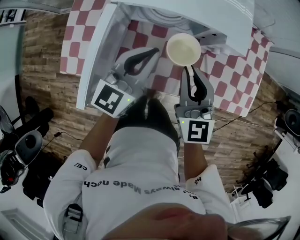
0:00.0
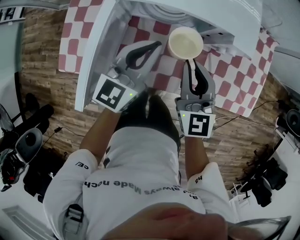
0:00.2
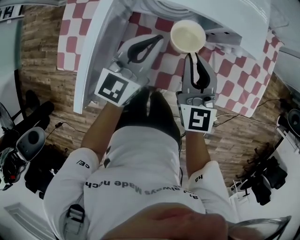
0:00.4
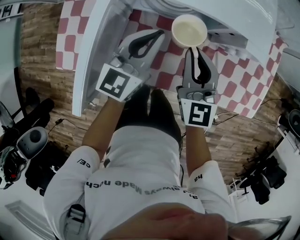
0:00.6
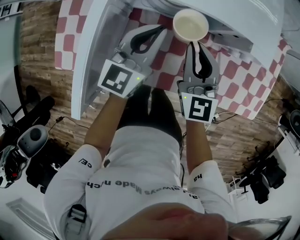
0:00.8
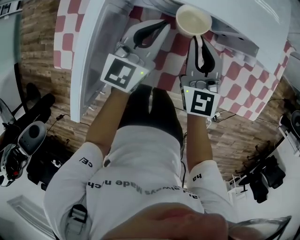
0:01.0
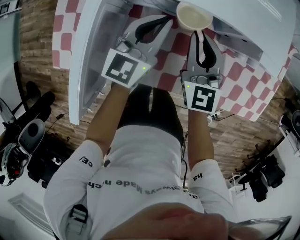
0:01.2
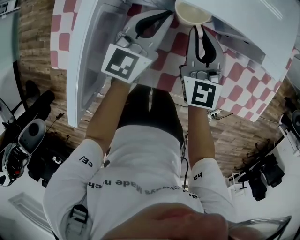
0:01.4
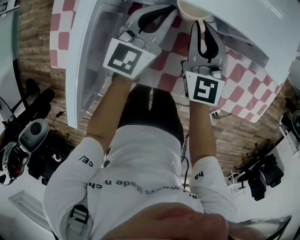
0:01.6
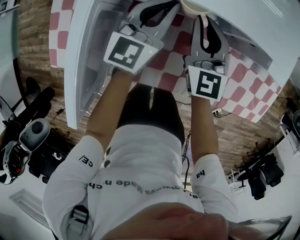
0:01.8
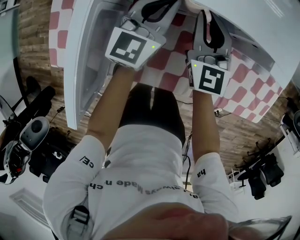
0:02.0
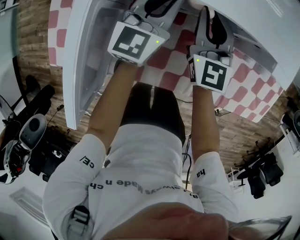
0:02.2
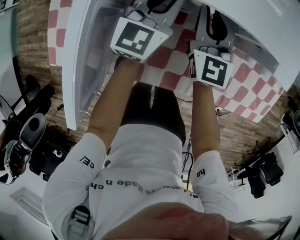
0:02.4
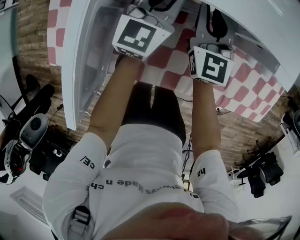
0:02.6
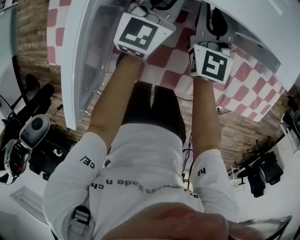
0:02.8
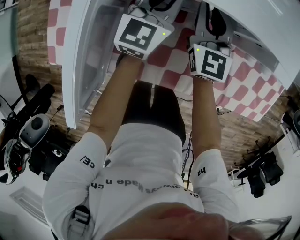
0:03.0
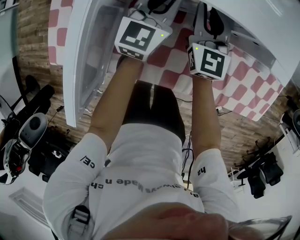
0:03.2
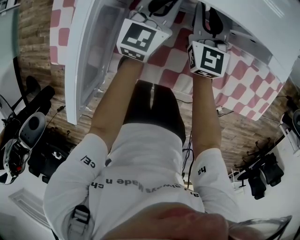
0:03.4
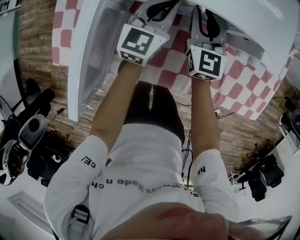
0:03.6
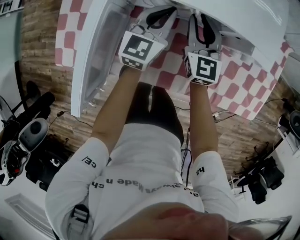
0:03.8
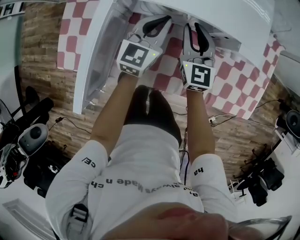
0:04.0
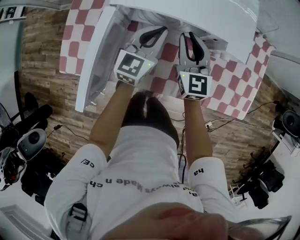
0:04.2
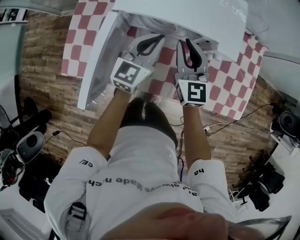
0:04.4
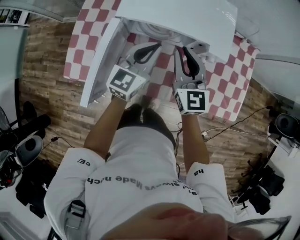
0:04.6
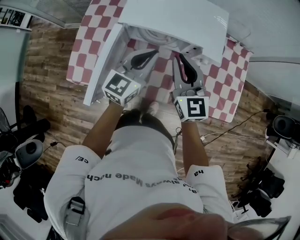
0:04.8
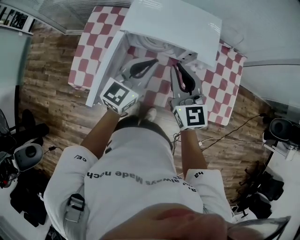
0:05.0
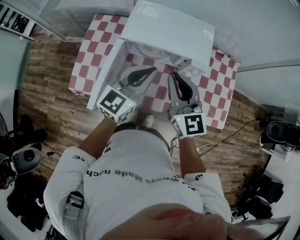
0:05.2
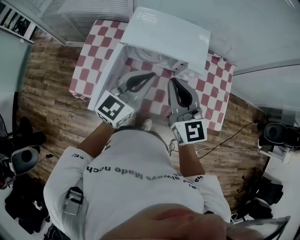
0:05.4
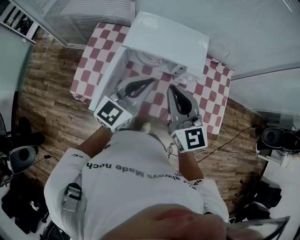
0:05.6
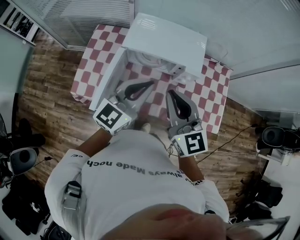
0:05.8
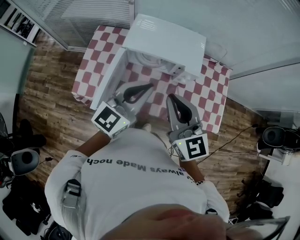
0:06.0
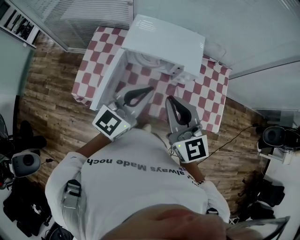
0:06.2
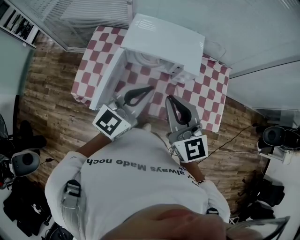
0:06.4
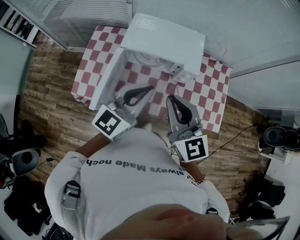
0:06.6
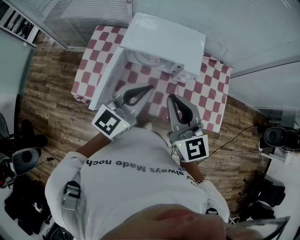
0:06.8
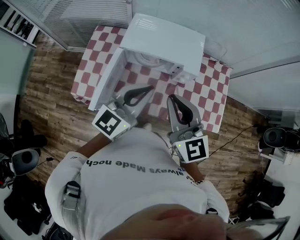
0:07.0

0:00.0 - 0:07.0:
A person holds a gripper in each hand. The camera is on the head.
0:00.0 - 0:01.4: Both grippers travel together downward and forward, approximately 20 cm.
0:01.4 - 0:02.8: Both grippers move forward, about 5 cm.
0:02.8 - 0:04.2: The two grippers go some 15 cm upward and backward.
0:04.2 - 0:05.6: The two grippers go about 35 cm upward and backward.
0:05.6 - 0:07.0: The right gripper changes place by about 5 cm.

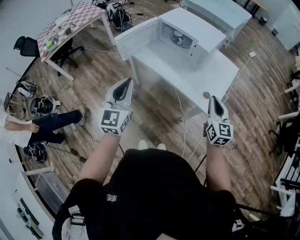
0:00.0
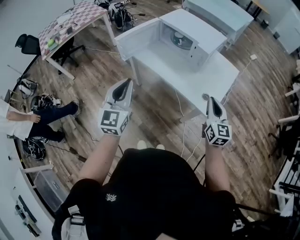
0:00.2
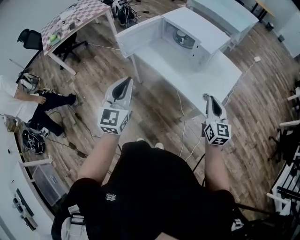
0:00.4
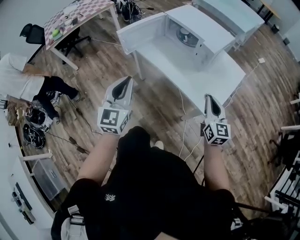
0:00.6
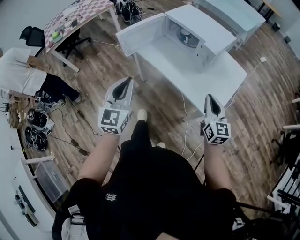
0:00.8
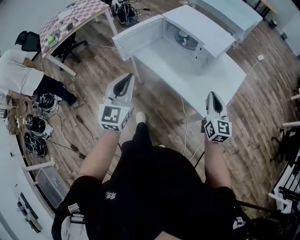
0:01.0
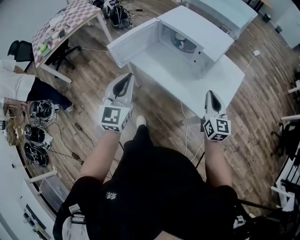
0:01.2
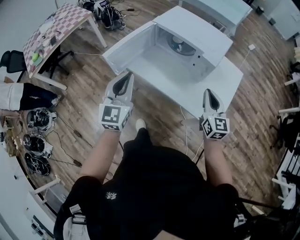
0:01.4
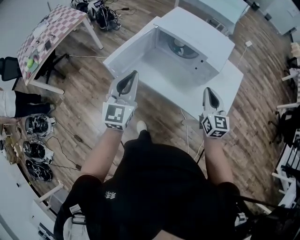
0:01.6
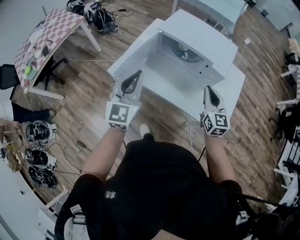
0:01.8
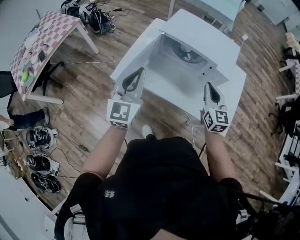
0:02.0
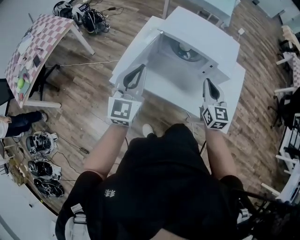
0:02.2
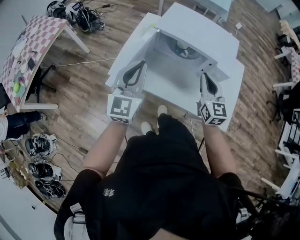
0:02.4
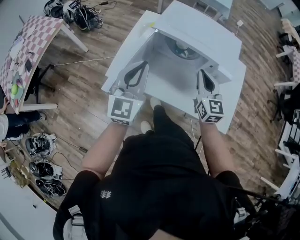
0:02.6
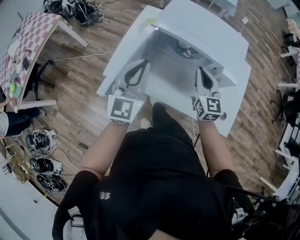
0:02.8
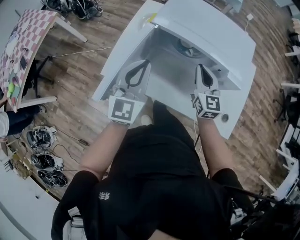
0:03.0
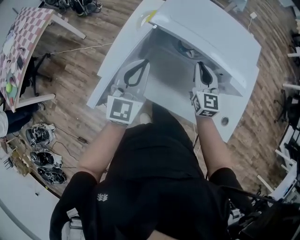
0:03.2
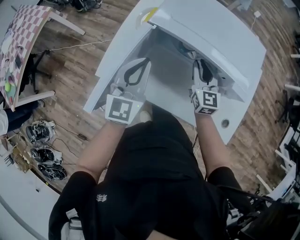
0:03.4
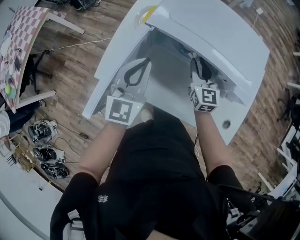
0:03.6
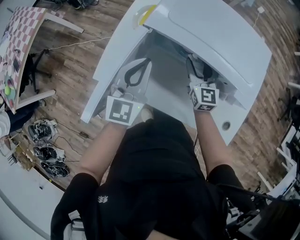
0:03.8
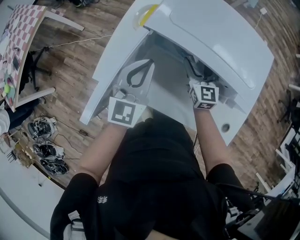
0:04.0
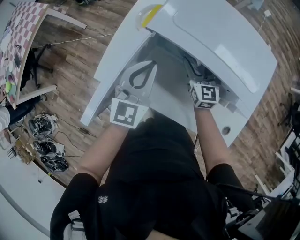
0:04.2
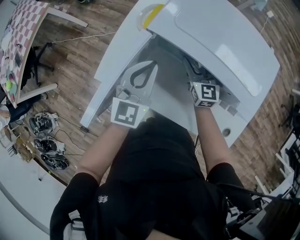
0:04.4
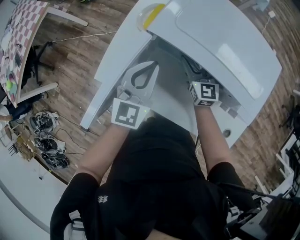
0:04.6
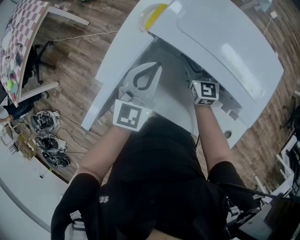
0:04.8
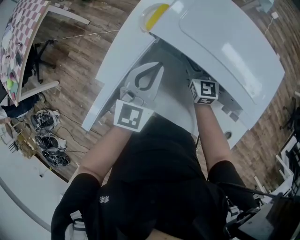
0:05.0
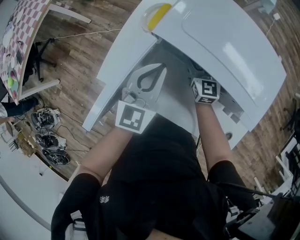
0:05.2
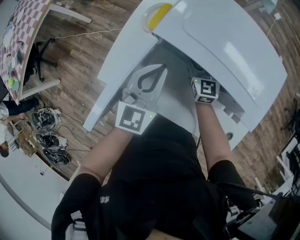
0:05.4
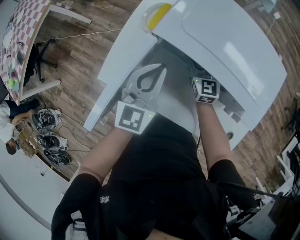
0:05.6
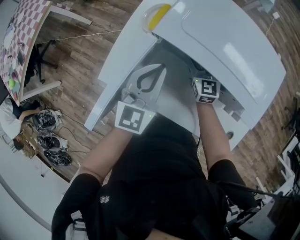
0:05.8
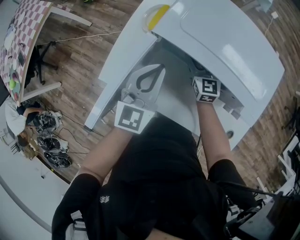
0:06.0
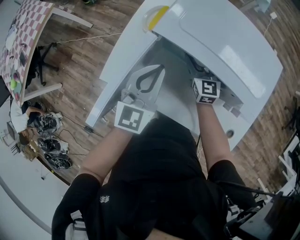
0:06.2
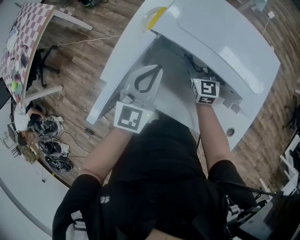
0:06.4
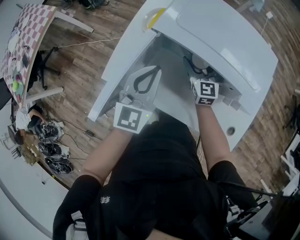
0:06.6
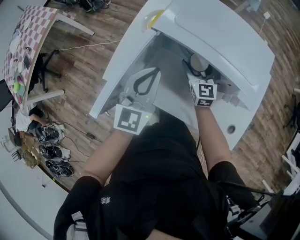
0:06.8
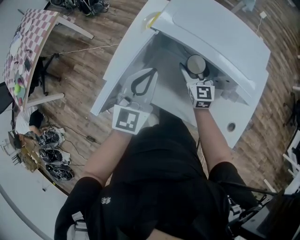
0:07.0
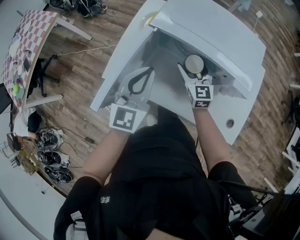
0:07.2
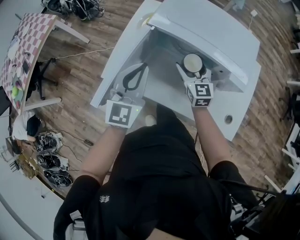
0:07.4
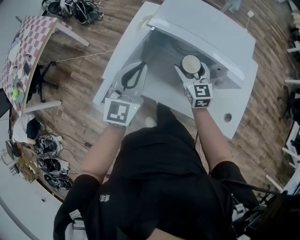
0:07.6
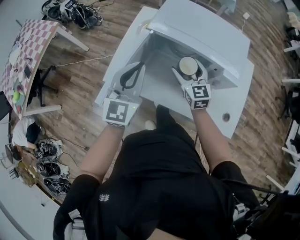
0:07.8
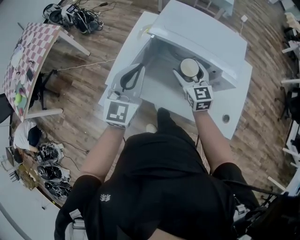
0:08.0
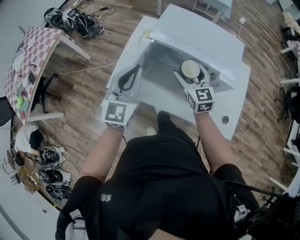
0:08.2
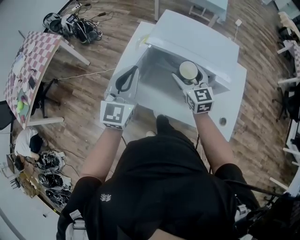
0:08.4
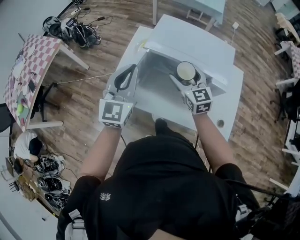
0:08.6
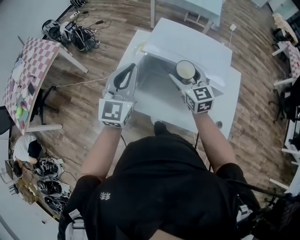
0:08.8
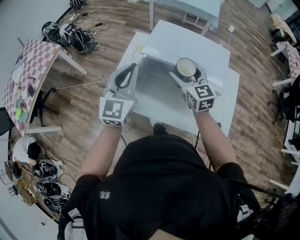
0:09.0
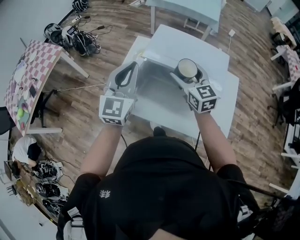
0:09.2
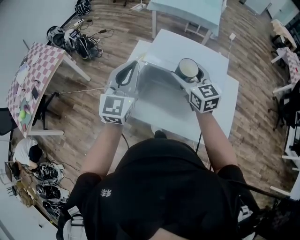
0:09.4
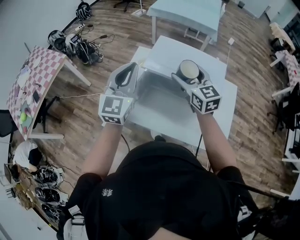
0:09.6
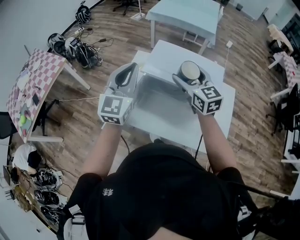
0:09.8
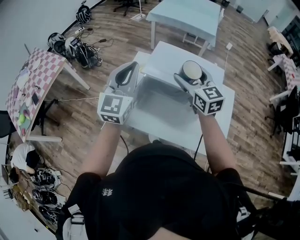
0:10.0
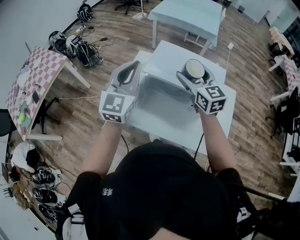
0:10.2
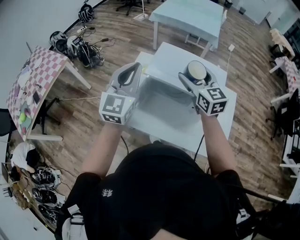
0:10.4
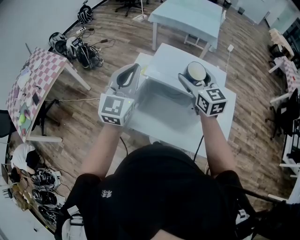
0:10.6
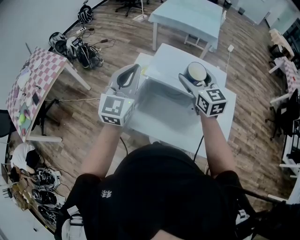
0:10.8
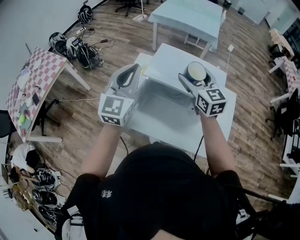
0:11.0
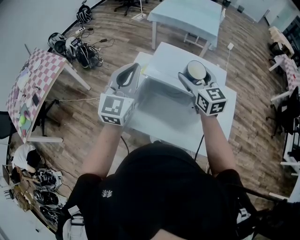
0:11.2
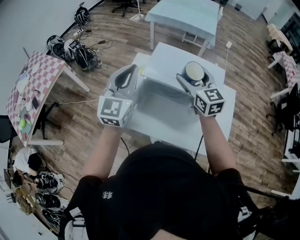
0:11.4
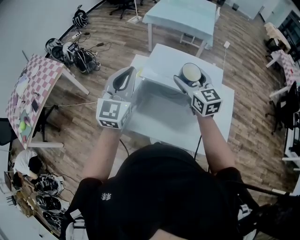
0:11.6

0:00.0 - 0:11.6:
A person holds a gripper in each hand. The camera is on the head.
0:00.0 - 0:01.4: The grippers both shift forward by some 20 cm.
0:01.4 - 0:02.8: The right gripper is displaced forward and to the left by roughly 25 cm. The left gripper moves forward, roughly 25 cm.
0:02.8 - 0:04.4: Both grippers move forward and downward, approximately 20 cm. The right gripper opens its fingers.
0:04.4 - 0:05.8: The grippers stay close to where they were, moving slightly.
0:05.8 - 0:07.2: The two grippers go approximately 10 cm backward and upward.
0:07.2 - 0:08.8: Both grippers move upward, about 15 cm.
0:08.8 - 0:10.2: The two grippers go about 10 cm upward.
0:10.2 - 0:11.6: The grippers make only small movements.

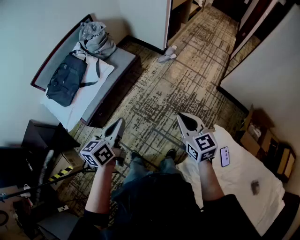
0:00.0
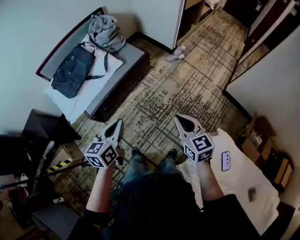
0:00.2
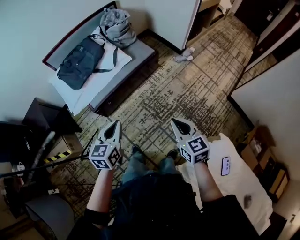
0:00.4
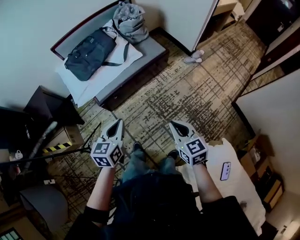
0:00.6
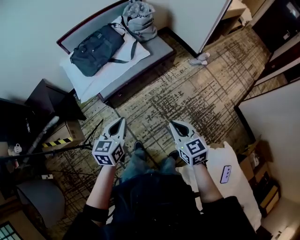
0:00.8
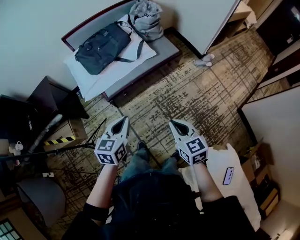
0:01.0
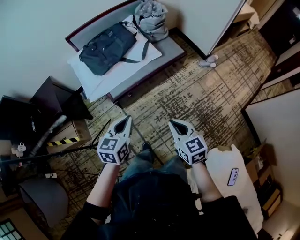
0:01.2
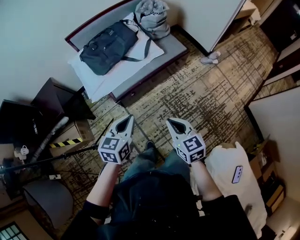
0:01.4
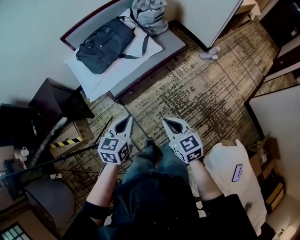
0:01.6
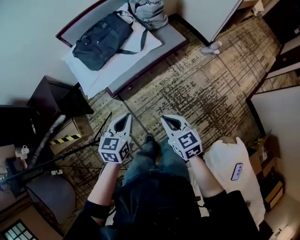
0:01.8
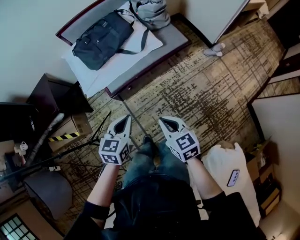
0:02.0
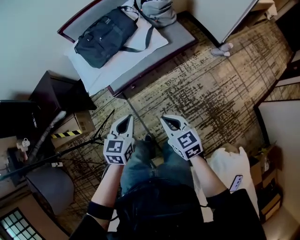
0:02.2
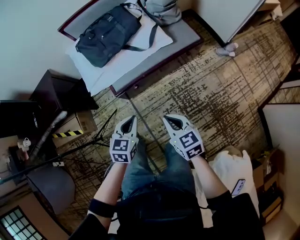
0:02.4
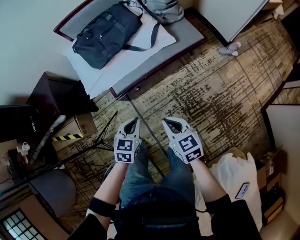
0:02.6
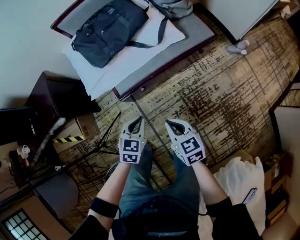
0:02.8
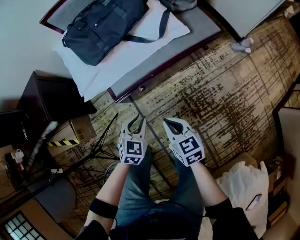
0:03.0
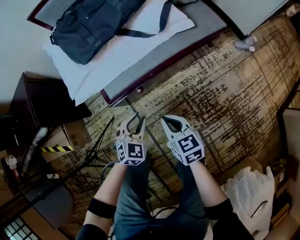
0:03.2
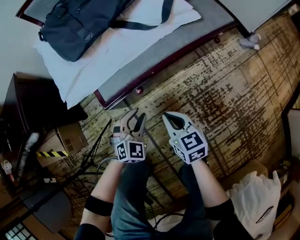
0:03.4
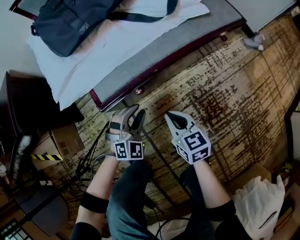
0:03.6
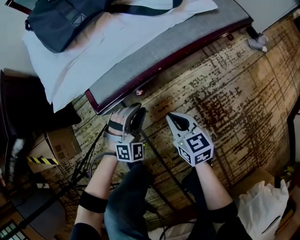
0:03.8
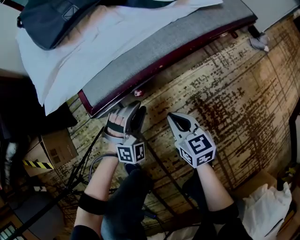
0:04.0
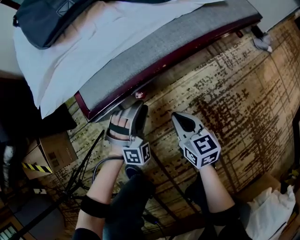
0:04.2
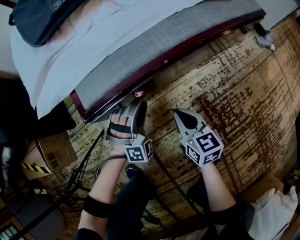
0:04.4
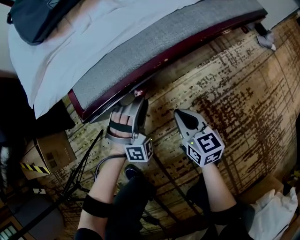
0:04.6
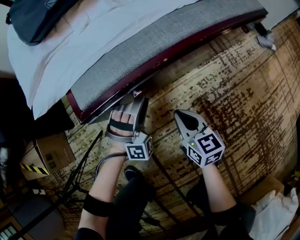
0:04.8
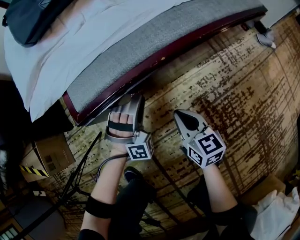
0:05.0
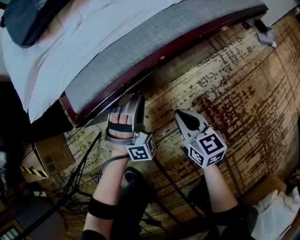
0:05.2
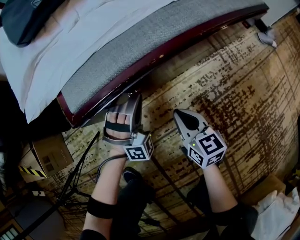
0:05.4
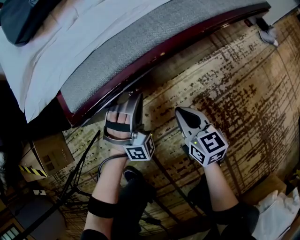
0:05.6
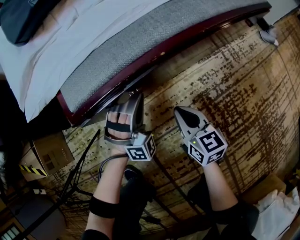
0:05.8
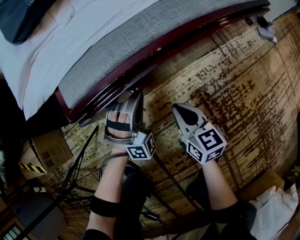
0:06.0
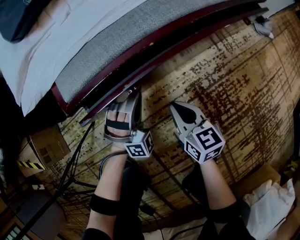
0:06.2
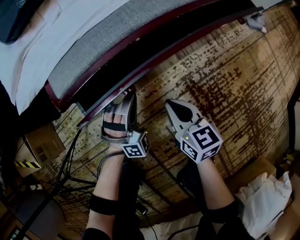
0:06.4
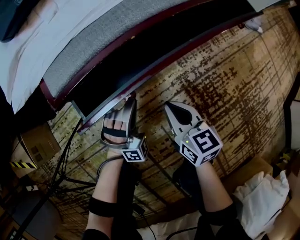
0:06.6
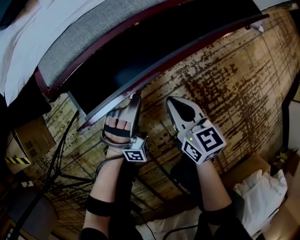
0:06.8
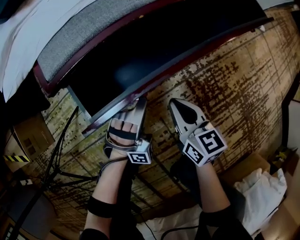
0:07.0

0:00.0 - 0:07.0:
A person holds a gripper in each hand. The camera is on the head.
0:00.0 - 0:01.4: Both grippers travel together to the left, roughly 25 cm. The left gripper rotates approximately 20 degrees; the right gripper swivels approximately 20 degrees.
0:01.4 - 0:02.8: The left gripper shifts roughly 25 cm downward, and rotates some 20 degrees, while the right gripper moves downward and forward, some 25 cm.
0:02.8 - 0:04.2: Both grippers travel together downward, about 40 cm. The left gripper rotates around the line of its fingers by roughly 70 degrees, clockwise from behind, and opens its fingers.
0:04.2 - 0:05.6: The right gripper goes approximately 5 cm downward; the left gripper closes.
0:05.6 - 0:07.0: The left gripper shifts approximately 15 cm backward; the right gripper is displaced backward by about 10 cm.
